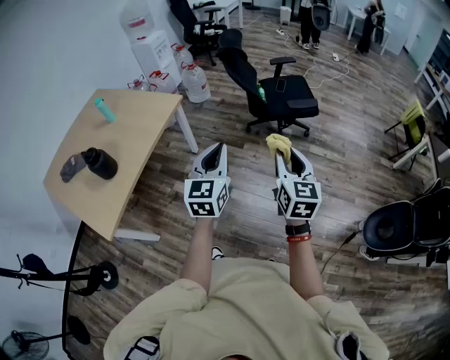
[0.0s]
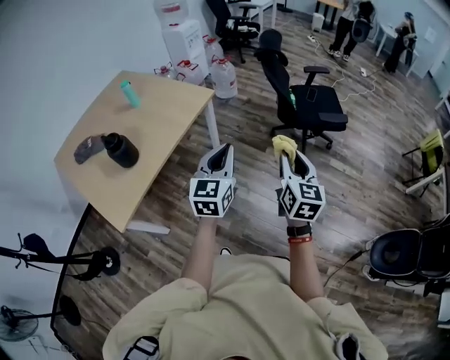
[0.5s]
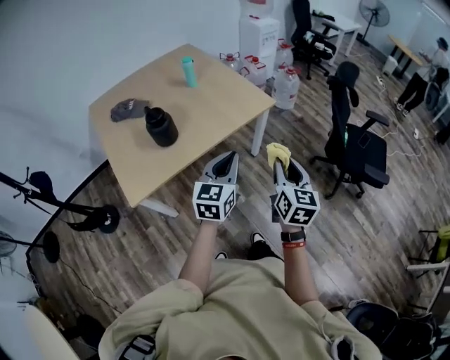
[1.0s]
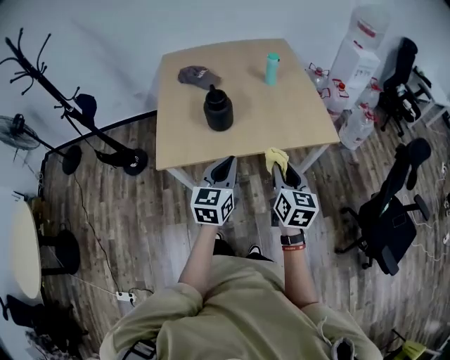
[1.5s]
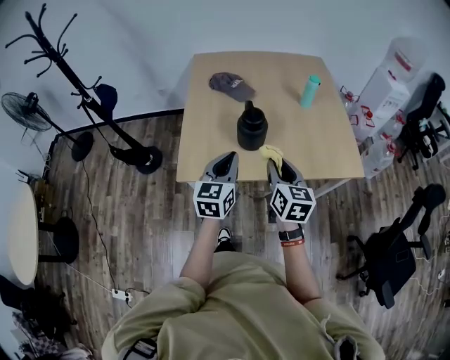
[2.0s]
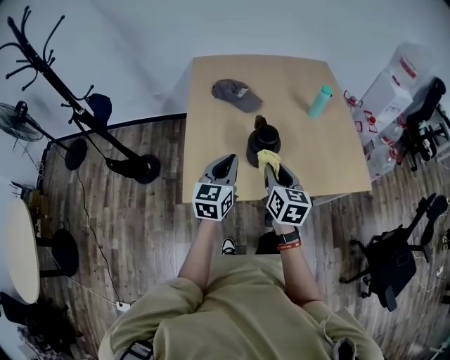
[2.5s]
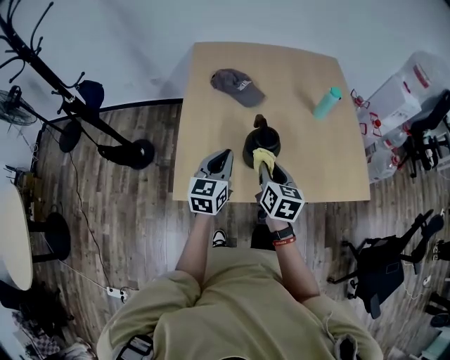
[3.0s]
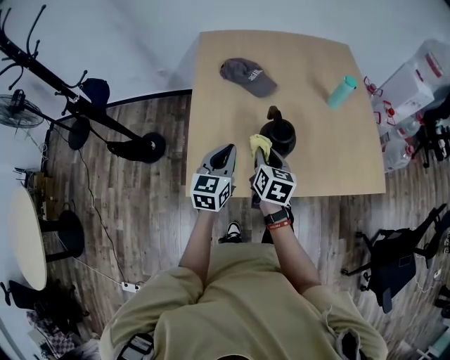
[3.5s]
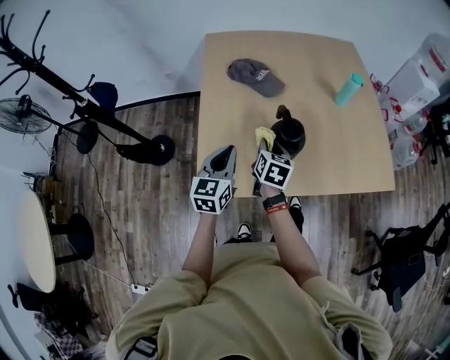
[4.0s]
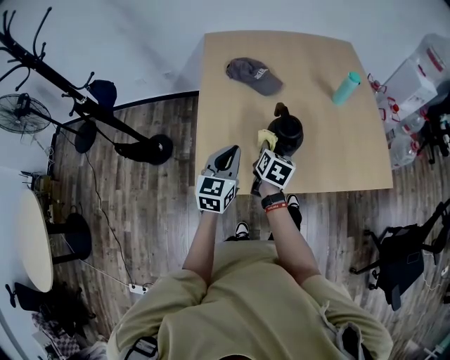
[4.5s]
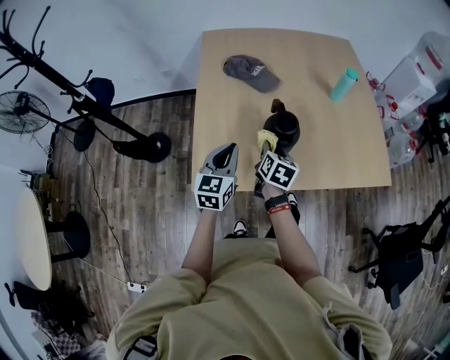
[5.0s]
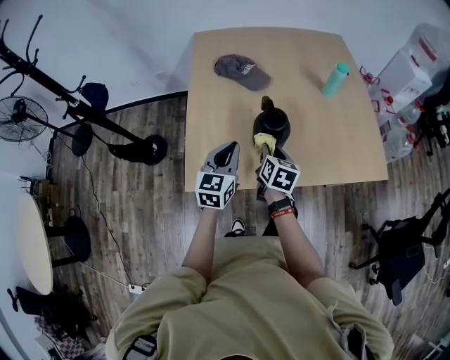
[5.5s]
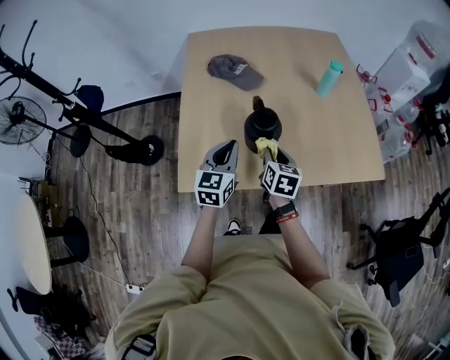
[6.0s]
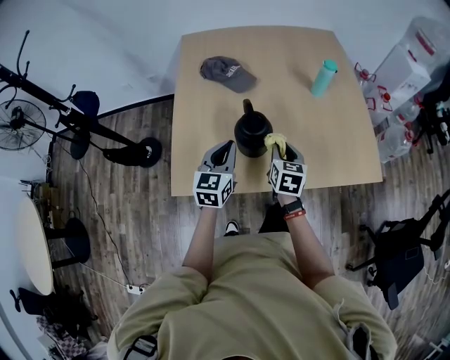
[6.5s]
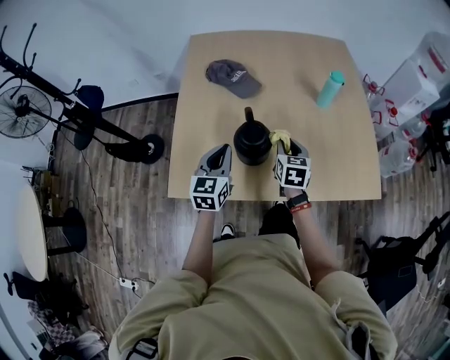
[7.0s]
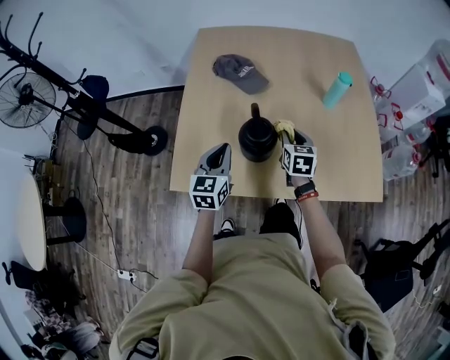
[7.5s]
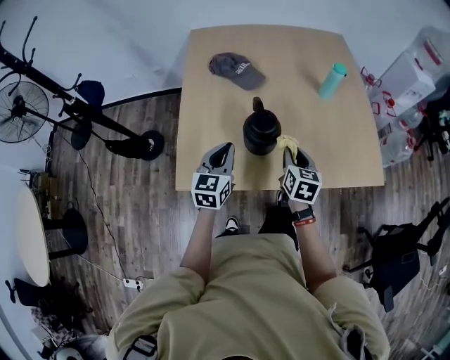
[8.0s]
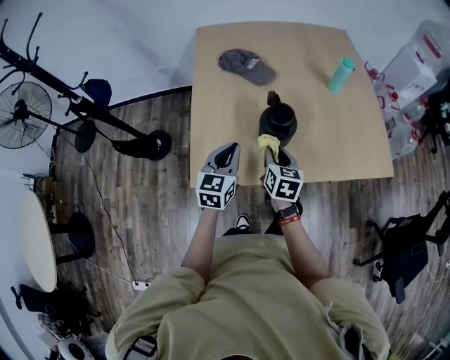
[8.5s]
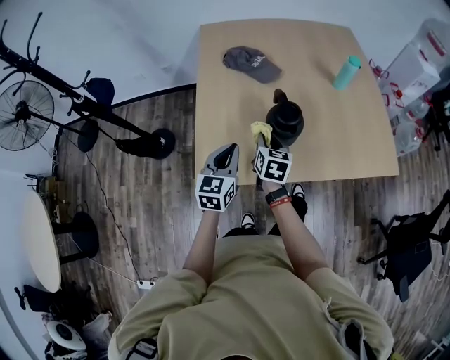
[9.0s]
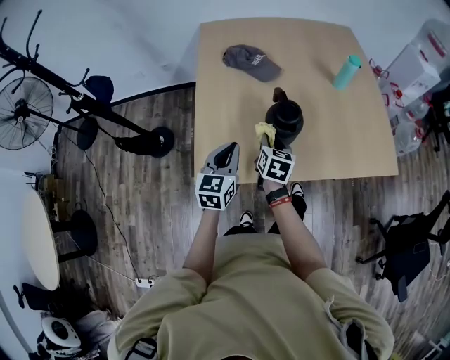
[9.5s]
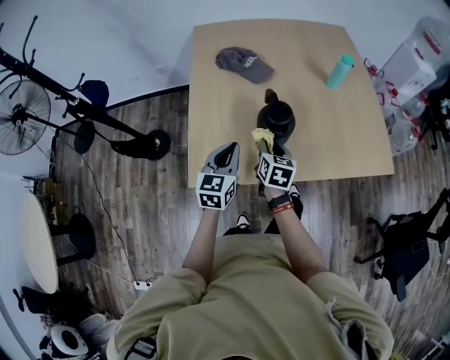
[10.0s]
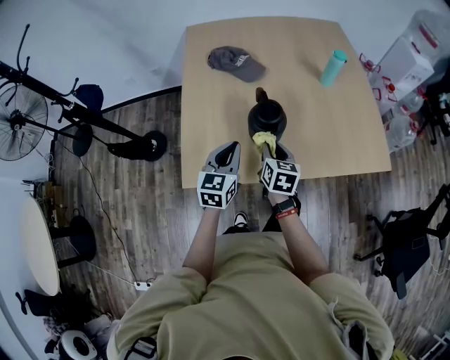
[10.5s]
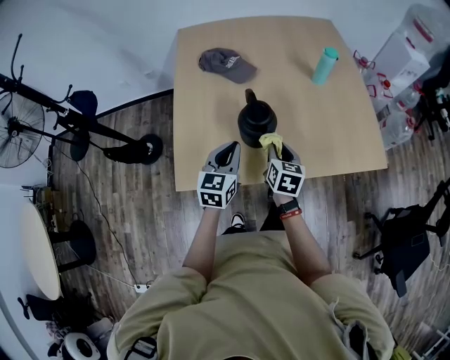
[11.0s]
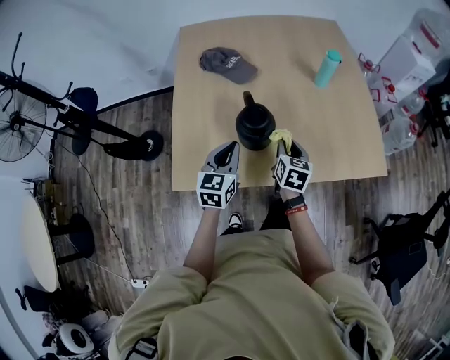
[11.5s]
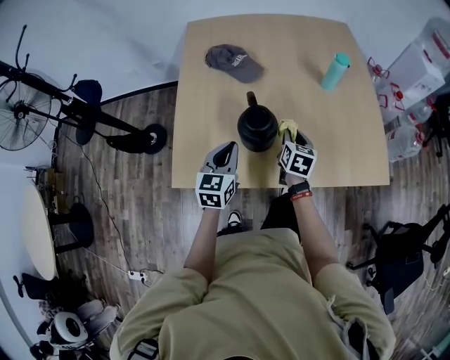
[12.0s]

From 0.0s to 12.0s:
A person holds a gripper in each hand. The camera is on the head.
From 0.0s to 2.0s: Both grippers are carried some 70 cm. The right gripper rotates some 70 degrees, while the left gripper turns by approximately 60 degrees.
From 2.0s to 4.0s: The two grippers go about 30 cm forward, to the left and downward. The right gripper changes its angle by approximately 20 degrees.
From 4.0s to 6.0s: The two grippers go some 10 cm to the right.
From 6.0s to 8.0s: The right gripper travels to the right by about 5 cm, and goes forward and returns, about 15 cm each way.
From 8.0s to 10.0s: The right gripper travels to the left by roughly 15 cm.
From 10.0s to 12.0s: The left gripper is displaced to the right and forward by about 10 cm; the right gripper moves to the right and forward, approximately 20 cm.

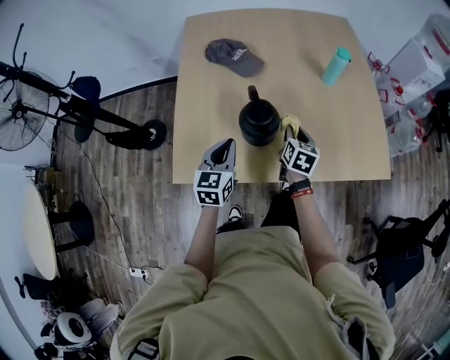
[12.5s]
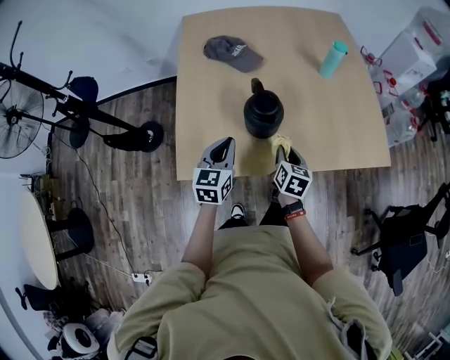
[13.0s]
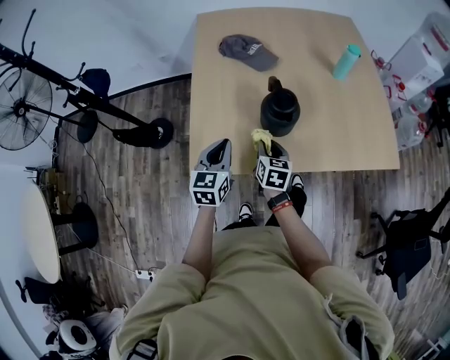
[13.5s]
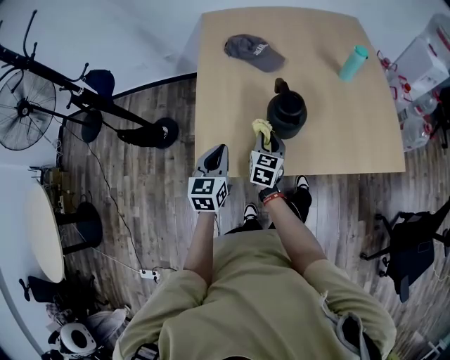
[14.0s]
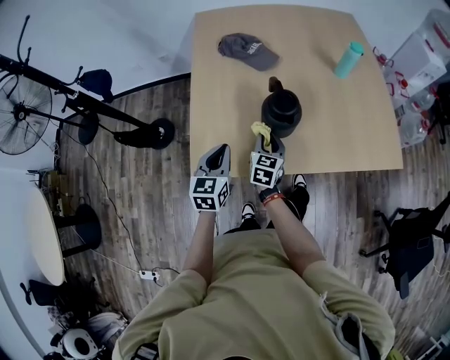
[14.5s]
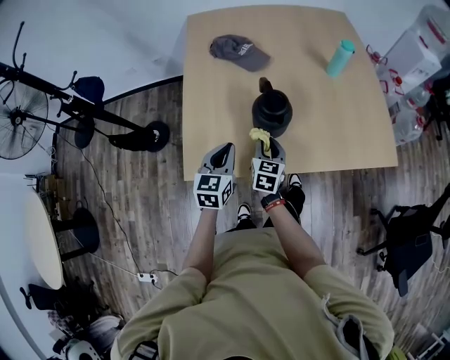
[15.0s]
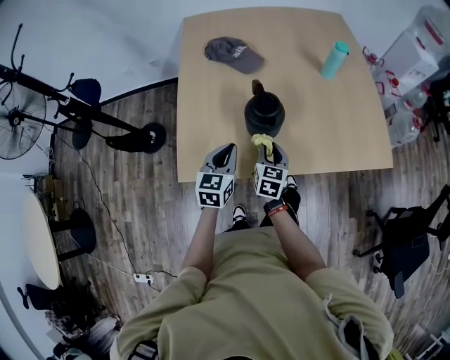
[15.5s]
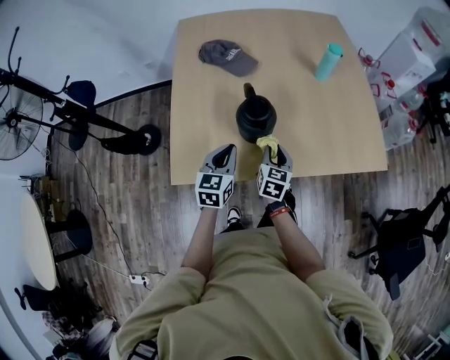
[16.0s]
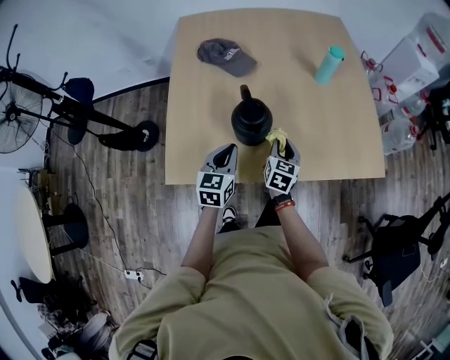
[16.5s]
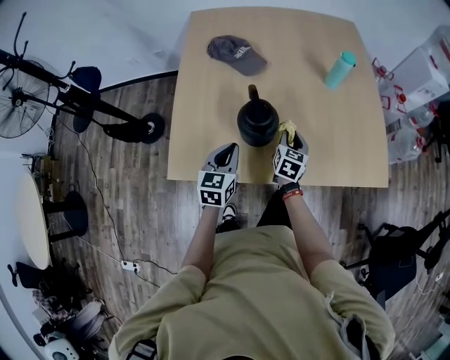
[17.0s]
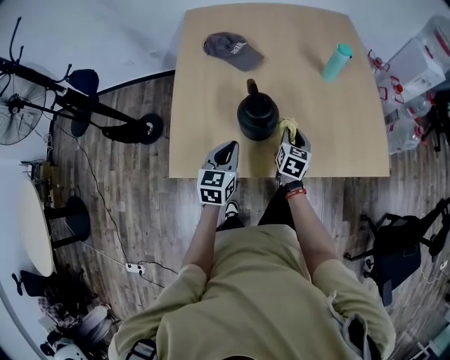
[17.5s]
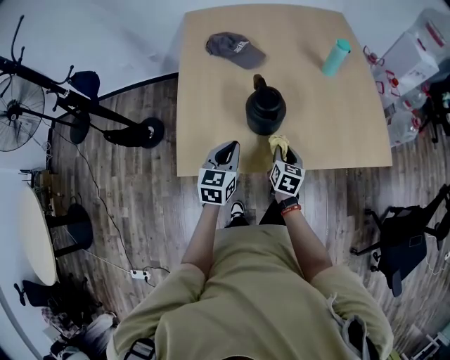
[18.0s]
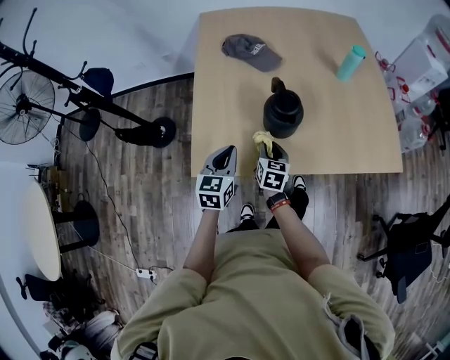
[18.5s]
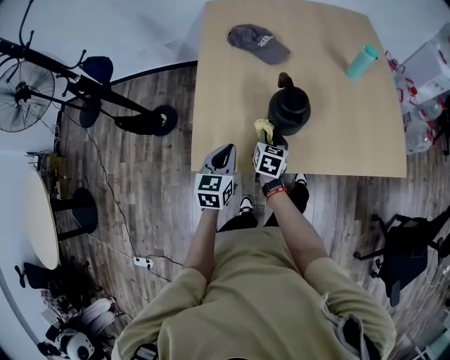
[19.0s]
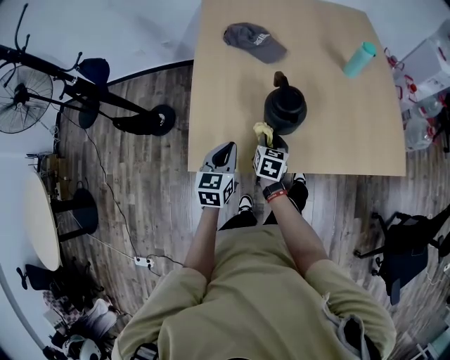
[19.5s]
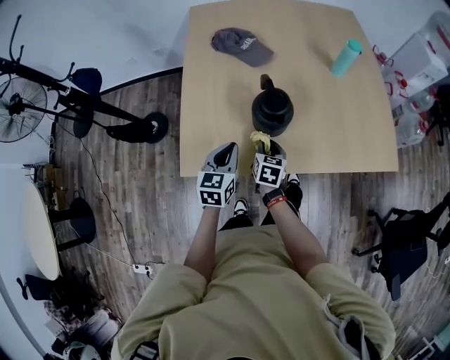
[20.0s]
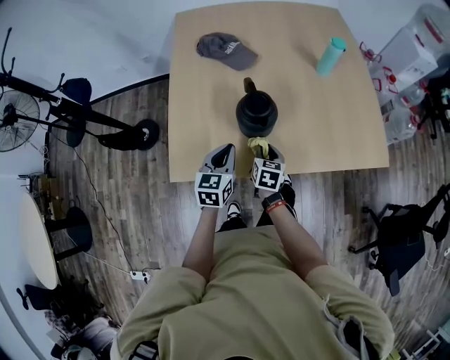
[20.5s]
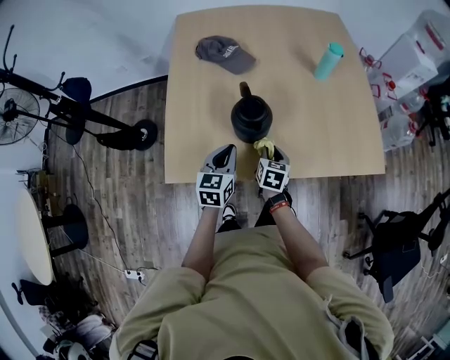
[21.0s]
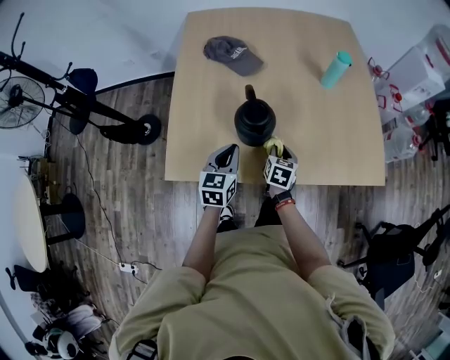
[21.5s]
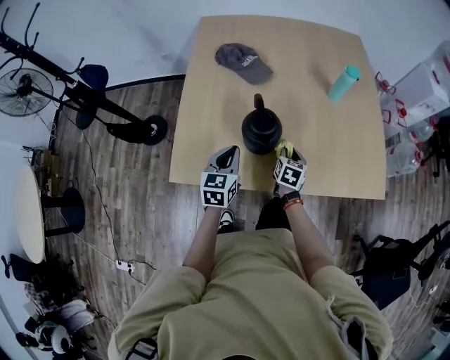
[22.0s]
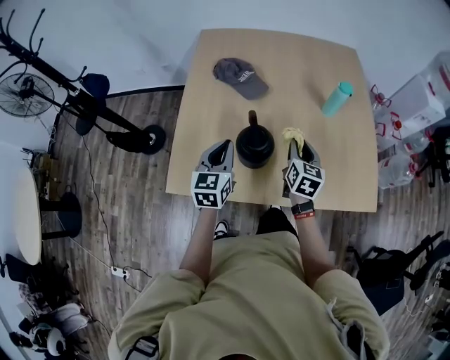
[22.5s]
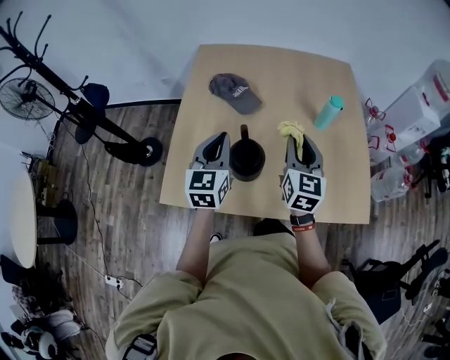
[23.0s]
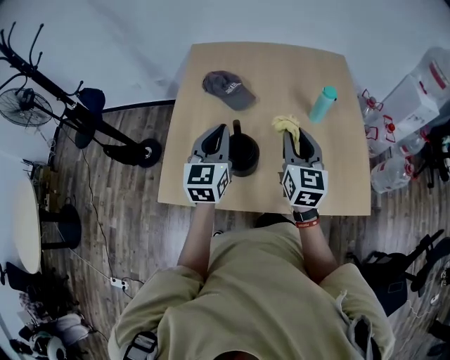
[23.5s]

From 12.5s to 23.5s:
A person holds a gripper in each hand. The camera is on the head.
From 12.5s to 14.5s: The left gripper travels to the left and backward by roughly 10 cm. The right gripper goes some 20 cm to the left and backward.
From 14.5s to 16.0s: Both grippers travel together to the right, approximately 10 cm.
From 16.0s to 18.0s: The right gripper reaches about 10 cm forward, then returns.
From 18.0s to 20.0s: The right gripper heads to the left, covering some 10 cm. The left gripper travels to the left and back again, roughly 10 cm each way.
From 20.0s to 21.5s: The right gripper shifts approximately 10 cm to the right. Meanwhile the left gripper travels to the right by roughly 5 cm.
From 21.5s to 23.5s: The left gripper travels upward and forward by roughly 20 cm. Meanwhile the right gripper moves upward, approximately 30 cm, and points its fingers some 30 degrees further upward.

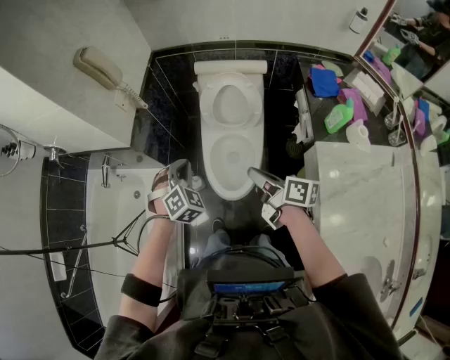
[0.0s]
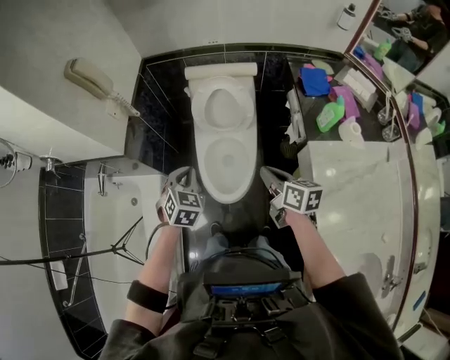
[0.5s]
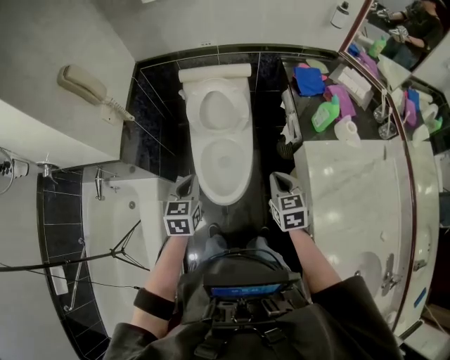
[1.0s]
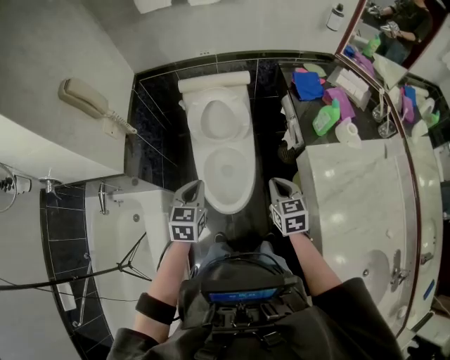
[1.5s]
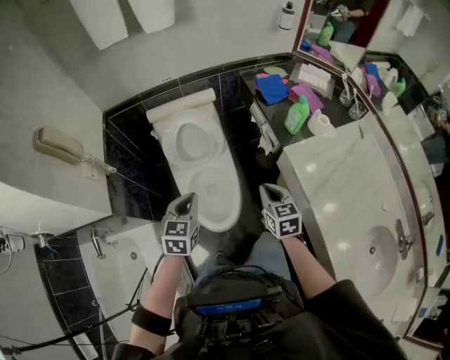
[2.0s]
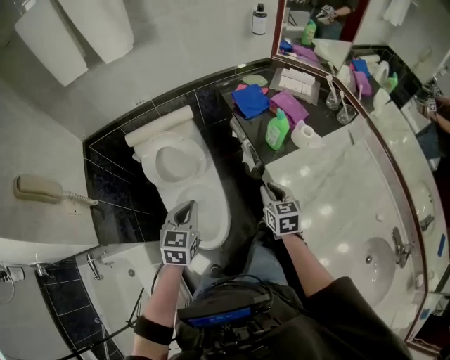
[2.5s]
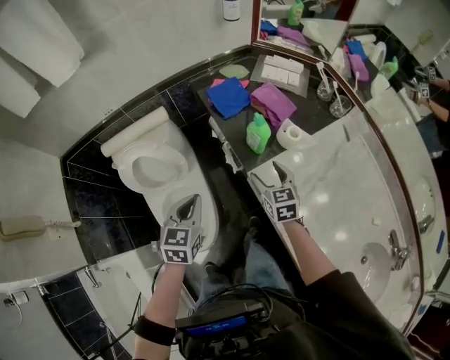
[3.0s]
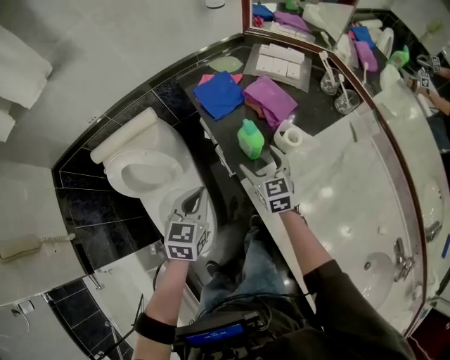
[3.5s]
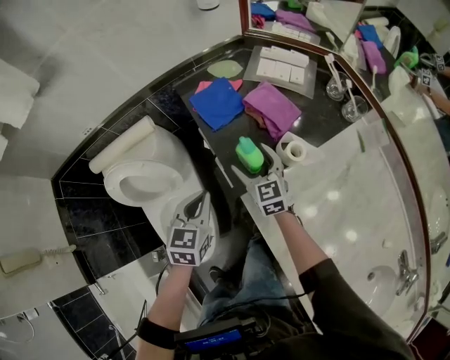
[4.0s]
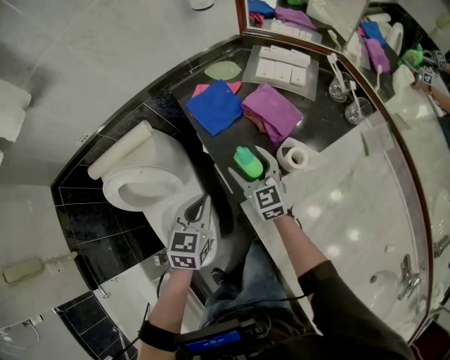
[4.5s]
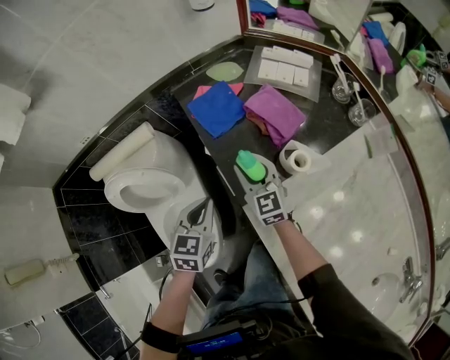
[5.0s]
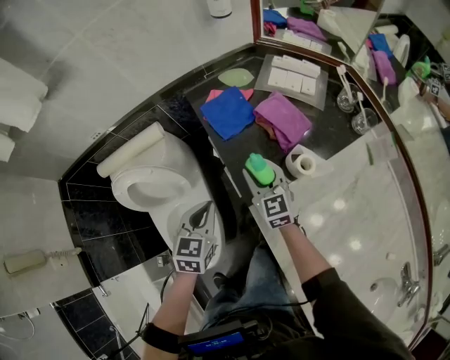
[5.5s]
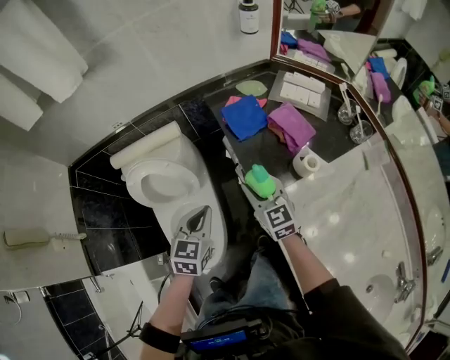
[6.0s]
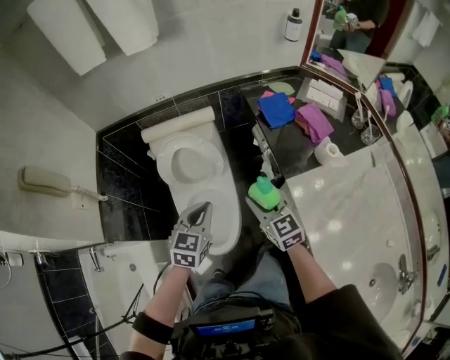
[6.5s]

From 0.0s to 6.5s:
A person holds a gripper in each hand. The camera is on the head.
From 0.0s to 2.0s: The left gripper changes place by approximately 10 cm, and turns by roughly 50 degrees. The right gripper shifts by roughly 15 cm, and rotates some 60 degrees.
From 2.0s to 4.5s: The pair of grippers is taken forward and to the right, some 40 cm. The right gripper opens its fingers.
From 4.5s to 6.5s: The right gripper is displaced backward, to the left and upward by approximately 35 cm, and closes. The left gripper goes about 30 cm to the left, backward and upward.
